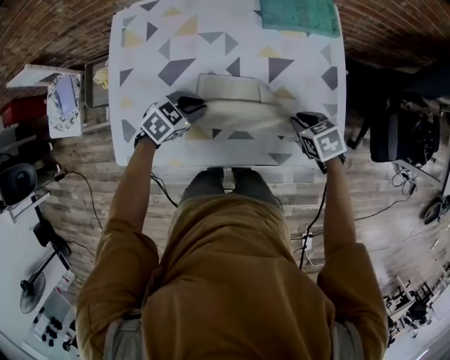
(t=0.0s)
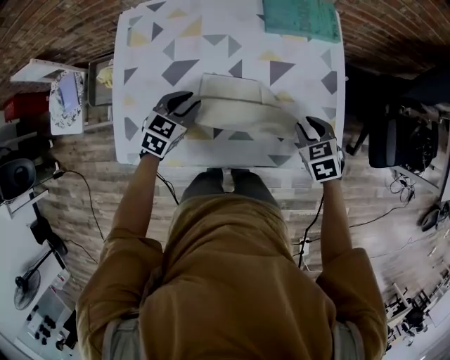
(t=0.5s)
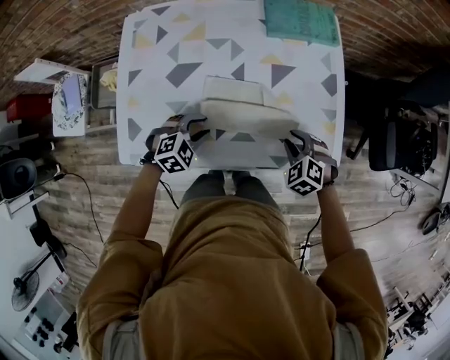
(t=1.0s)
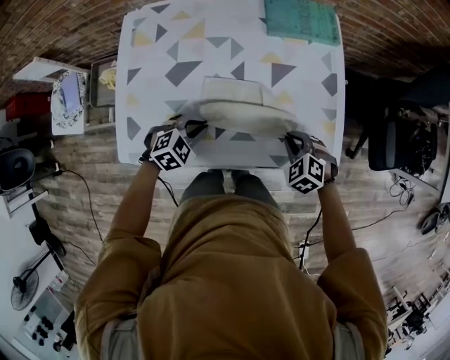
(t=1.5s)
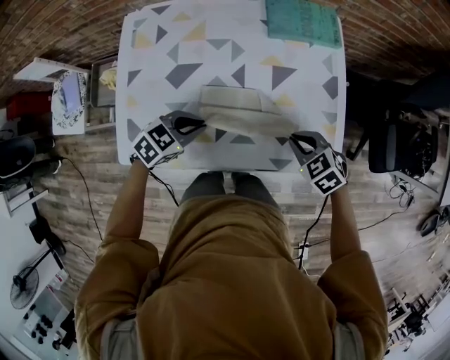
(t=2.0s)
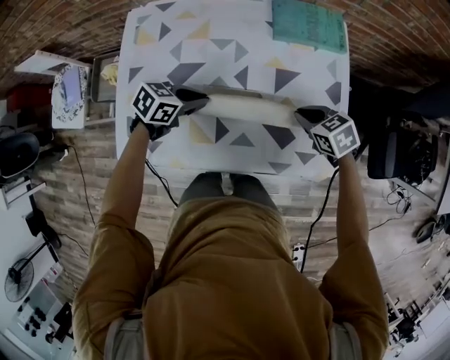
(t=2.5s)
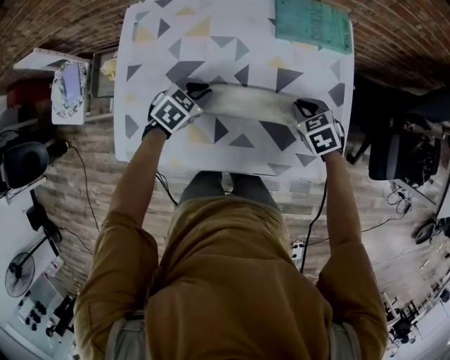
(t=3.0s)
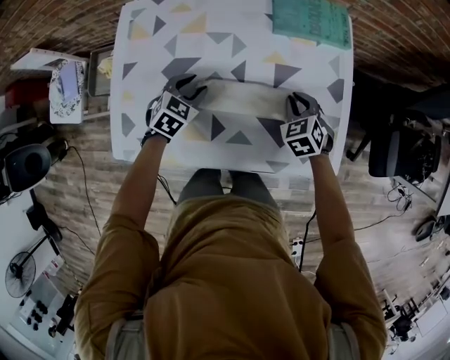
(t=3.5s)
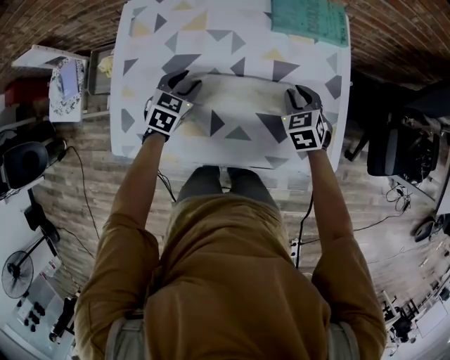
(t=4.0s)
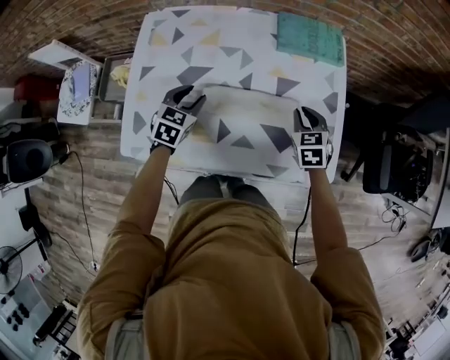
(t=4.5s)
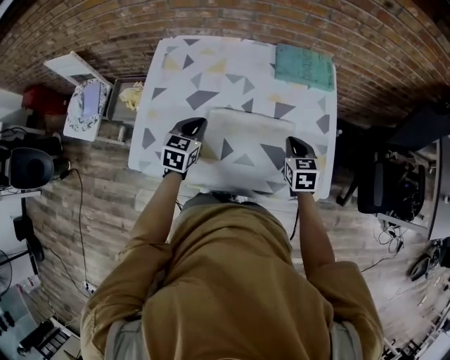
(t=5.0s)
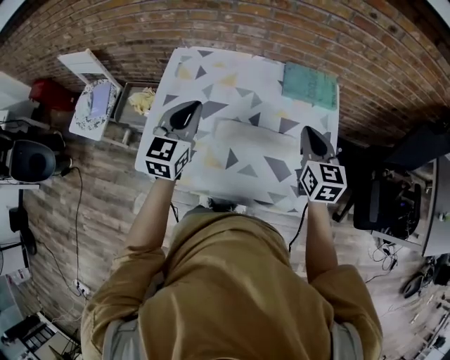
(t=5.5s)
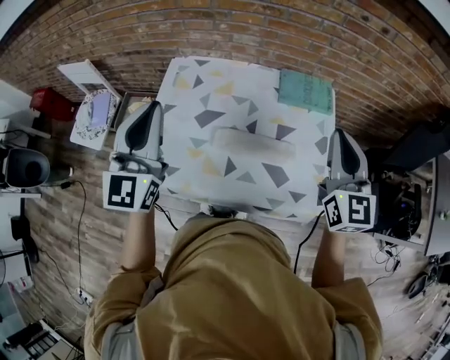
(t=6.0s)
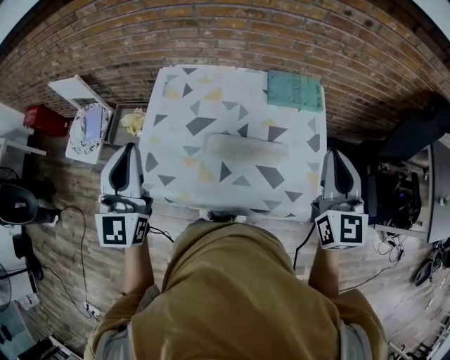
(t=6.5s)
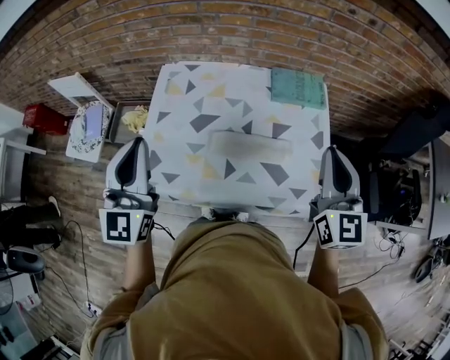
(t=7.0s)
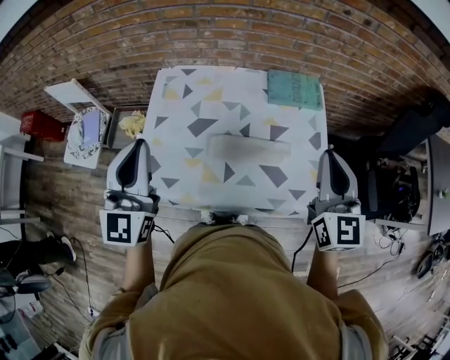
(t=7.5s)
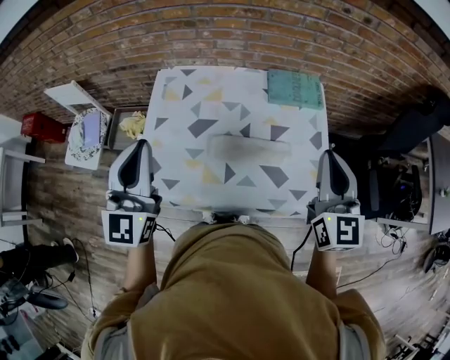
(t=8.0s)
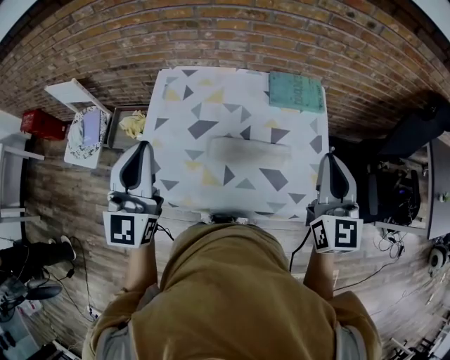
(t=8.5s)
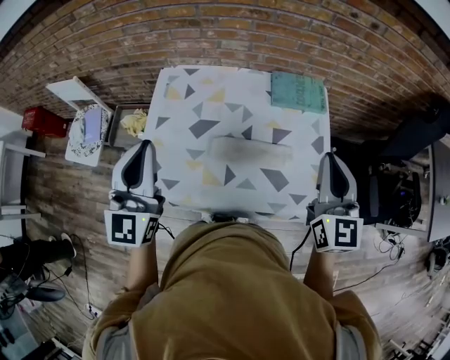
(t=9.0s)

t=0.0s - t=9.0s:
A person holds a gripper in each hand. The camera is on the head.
t=0.0s - t=2.0s: The right gripper moves roughly 5 cm, and turns by about 20 degrees; the left gripper goes some 5 cm upward.
t=2.0s - t=4.5s: The right gripper moves about 10 cm, and rotates some 30 degrees. The left gripper shifts by about 10 cm, and changes its angle by about 40 degrees.
t=4.5s - t=7.0s: The grippers both shift upward by roughly 35 cm. The right gripper tips its fingers upward by roughly 40 degrees. Meanwhile the left gripper tips its fingers upward by approximately 50 degrees.
t=7.0s - t=9.0s: There are only small adjustments of the grippers.

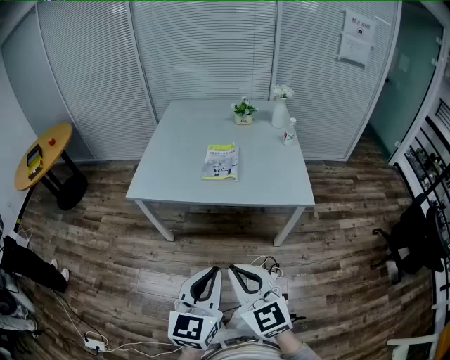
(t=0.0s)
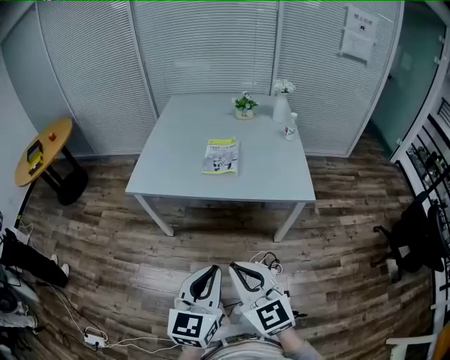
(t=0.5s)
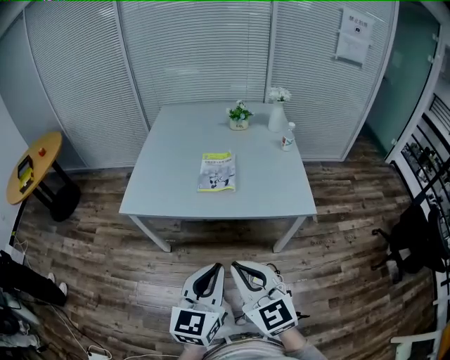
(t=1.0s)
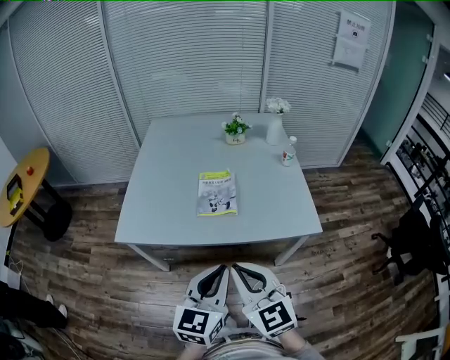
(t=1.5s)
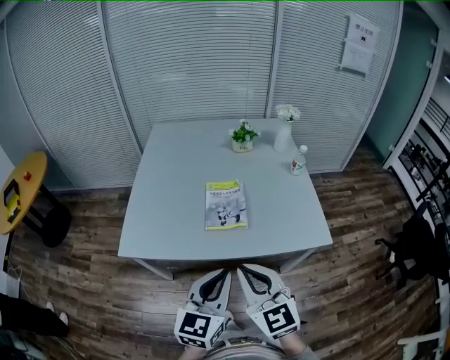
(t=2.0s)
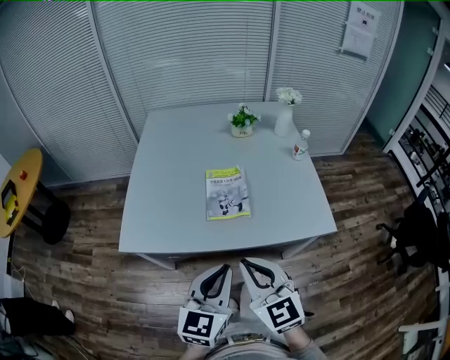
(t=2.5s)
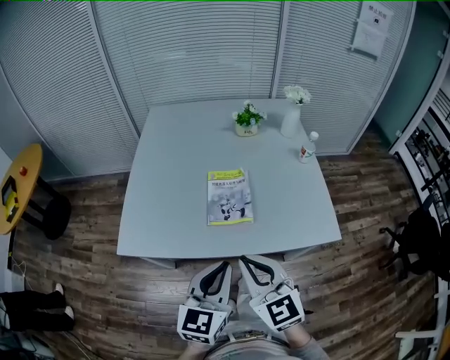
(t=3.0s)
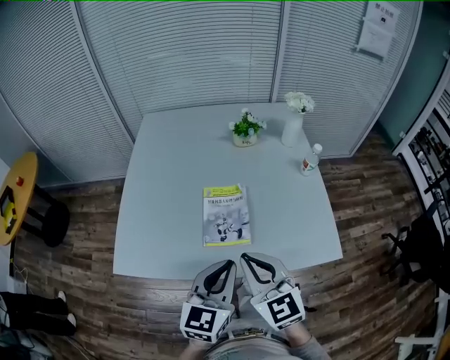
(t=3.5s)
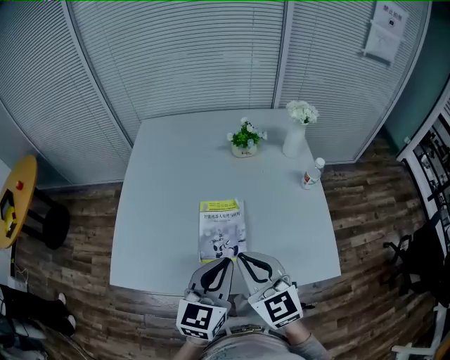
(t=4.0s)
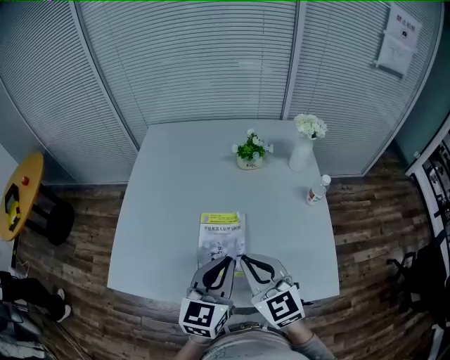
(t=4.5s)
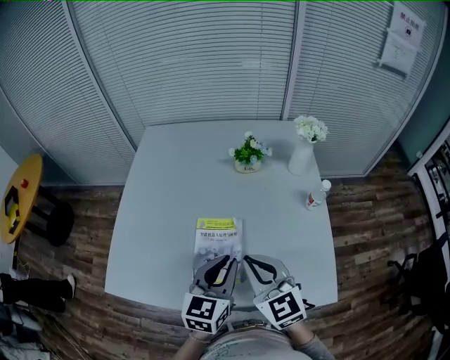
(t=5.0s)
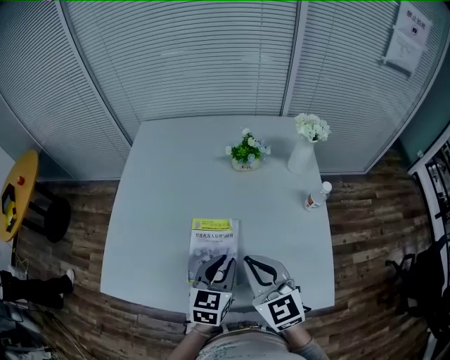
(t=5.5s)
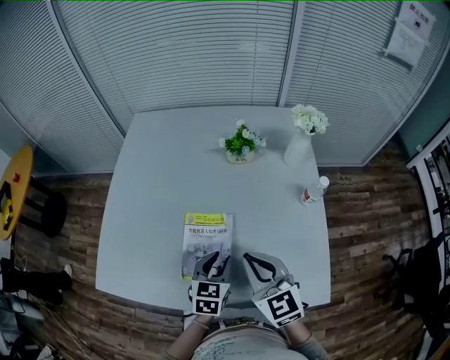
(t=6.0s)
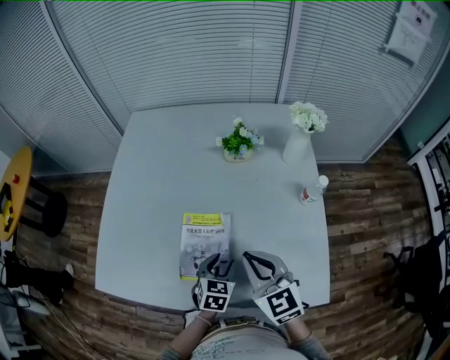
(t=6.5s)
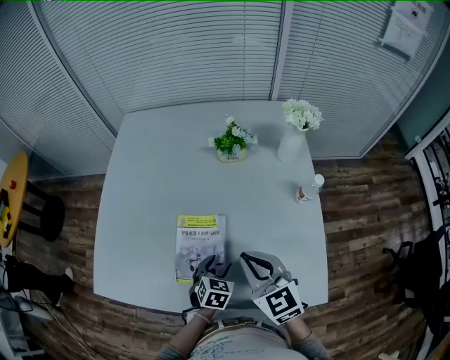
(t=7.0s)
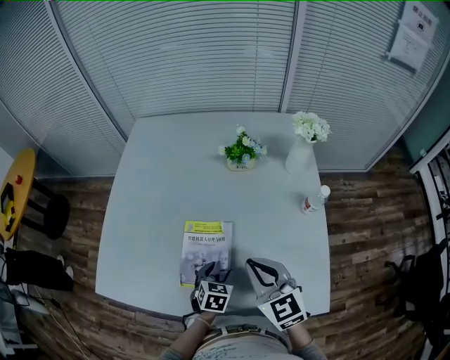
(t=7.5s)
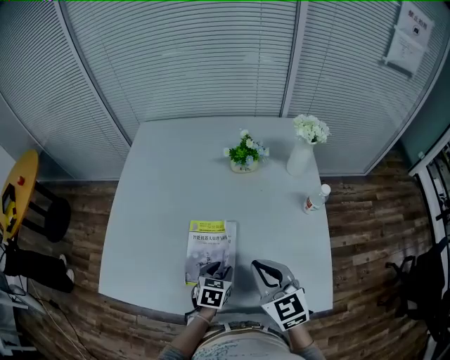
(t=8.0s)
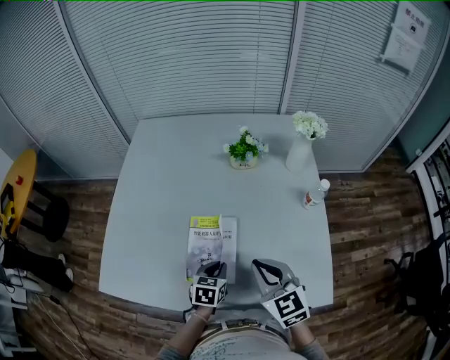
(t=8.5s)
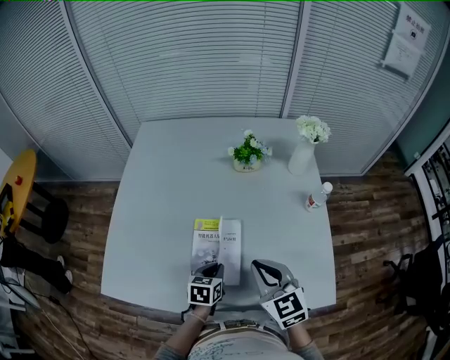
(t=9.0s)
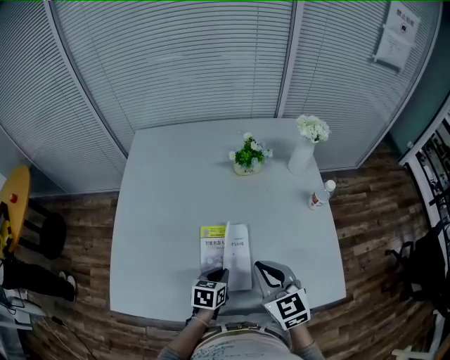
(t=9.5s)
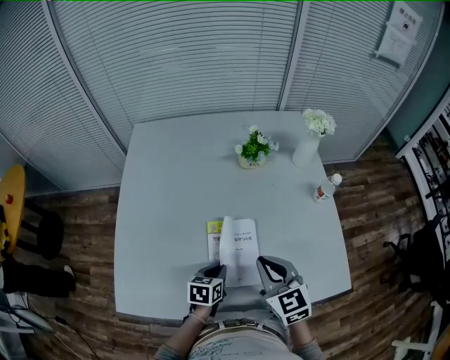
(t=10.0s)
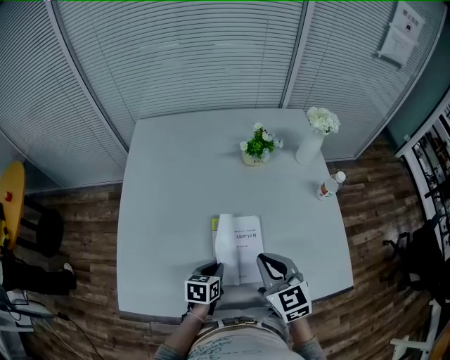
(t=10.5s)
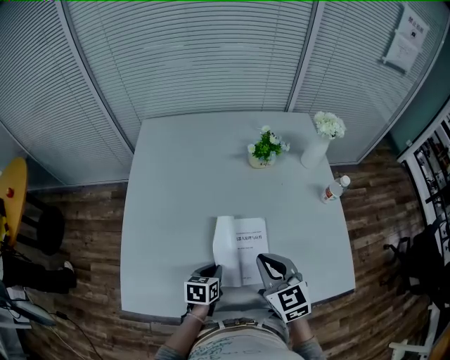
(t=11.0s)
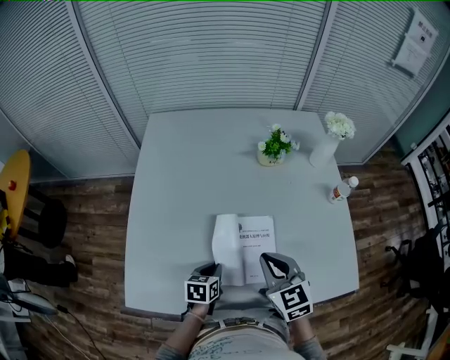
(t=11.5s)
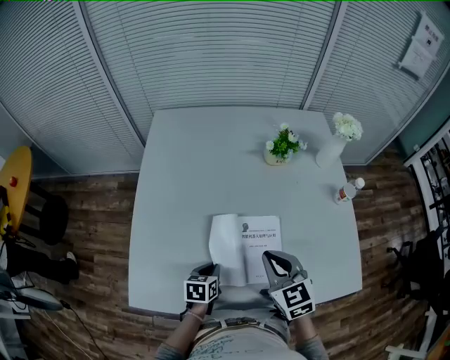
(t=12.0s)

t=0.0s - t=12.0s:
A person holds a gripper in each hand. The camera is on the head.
t=0.0s - t=2.0s: Both grippers move forward, about 30 cm.
t=2.0s - t=4.0s: Both grippers move forward, about 25 cm.
t=4.0s - t=6.0s: The right gripper travels forward, to the right and downward by about 15 cm. The left gripper goes approximately 20 cm downward, forward and to the right, swivels about 20 degrees, and opens its fingers.
t=6.0s - t=8.0s: The left gripper shifts some 10 cm downward.
t=8.0s - t=10.0s: The grippers both shift to the left by about 10 cm. The left gripper closes.
t=10.0s - t=12.0s: Both grippers travel together to the left, some 10 cm.

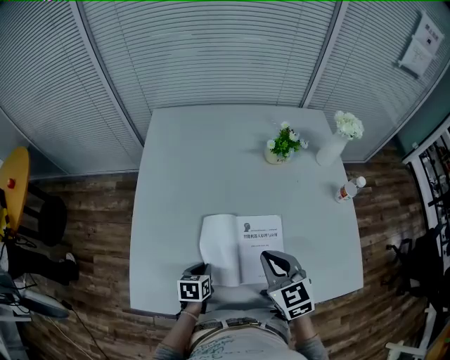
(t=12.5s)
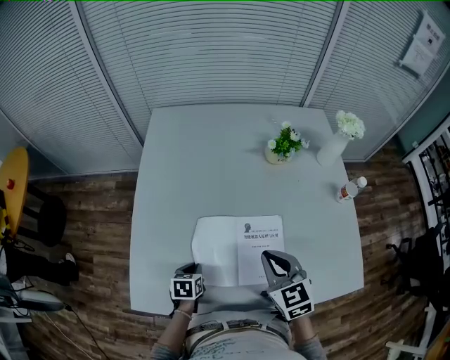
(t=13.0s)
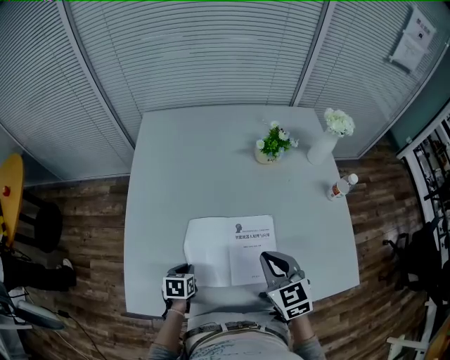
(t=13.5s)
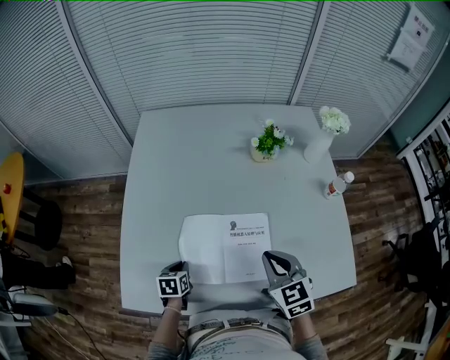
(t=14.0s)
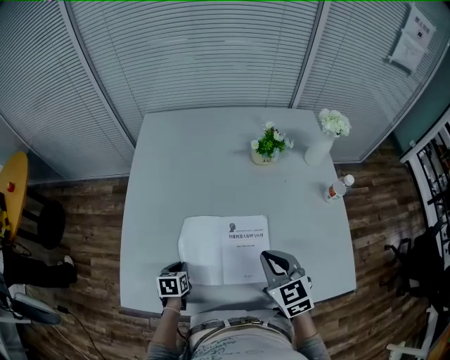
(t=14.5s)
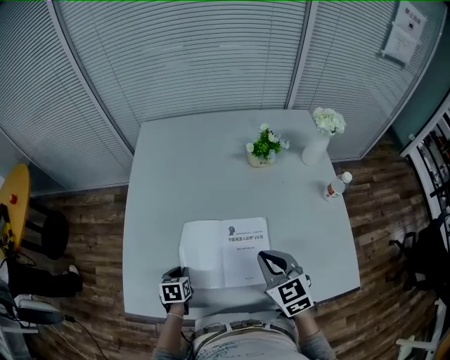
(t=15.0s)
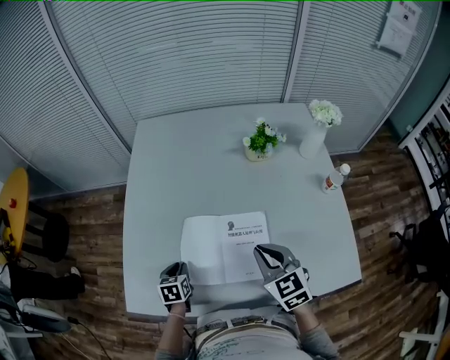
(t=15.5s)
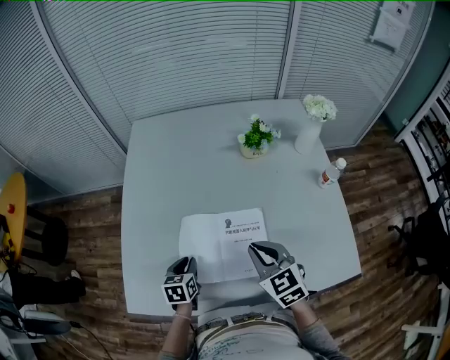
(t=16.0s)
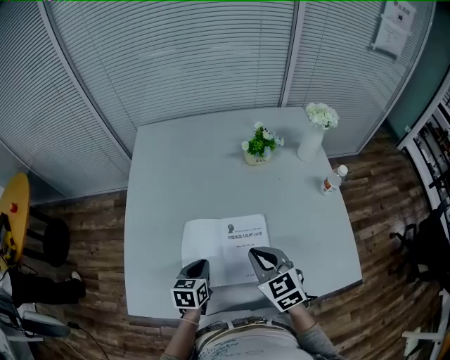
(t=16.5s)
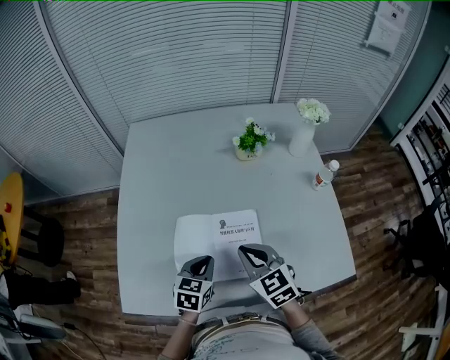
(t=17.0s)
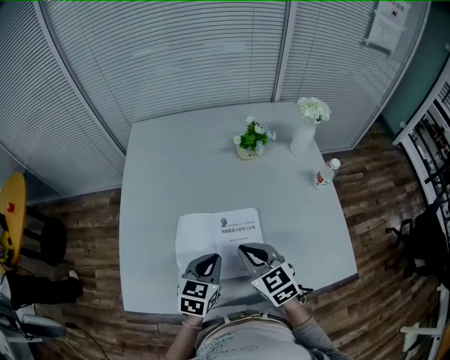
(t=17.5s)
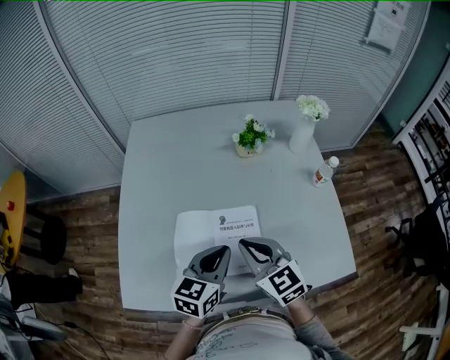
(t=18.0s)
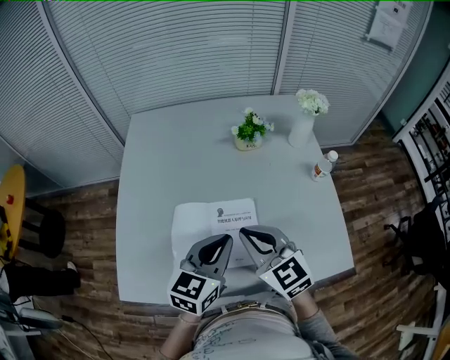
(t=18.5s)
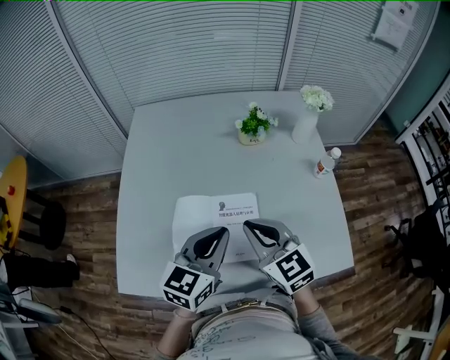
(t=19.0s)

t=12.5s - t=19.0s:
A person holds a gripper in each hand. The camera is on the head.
t=12.5s - t=14.5s: The right gripper heads to the right, covering approximately 5 cm.
t=14.5s - t=17.0s: The left gripper goes some 20 cm to the right and upward, and turns by some 30 degrees.
t=17.0s - t=19.0s: The right gripper is displaced upward by about 5 cm. Meanwhile the left gripper heads upward, covering approximately 15 cm, and turns by roughly 30 degrees.
